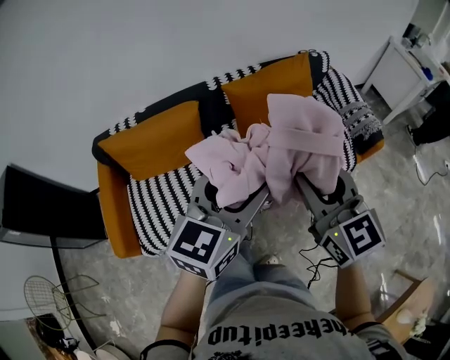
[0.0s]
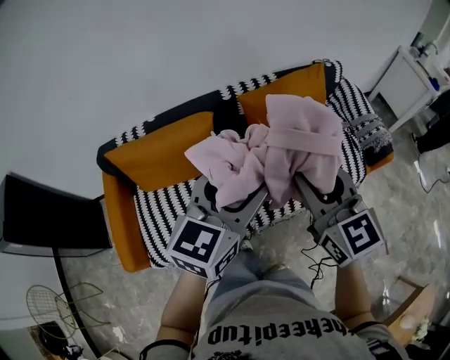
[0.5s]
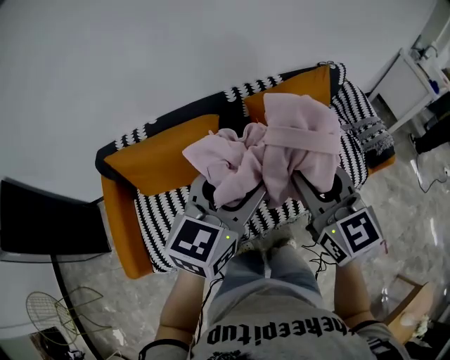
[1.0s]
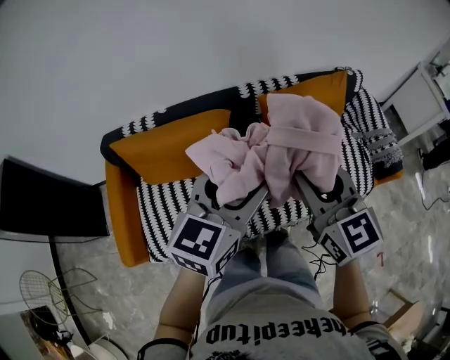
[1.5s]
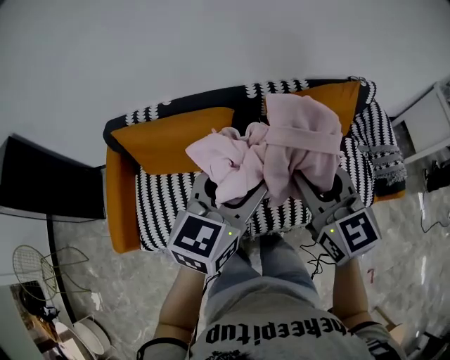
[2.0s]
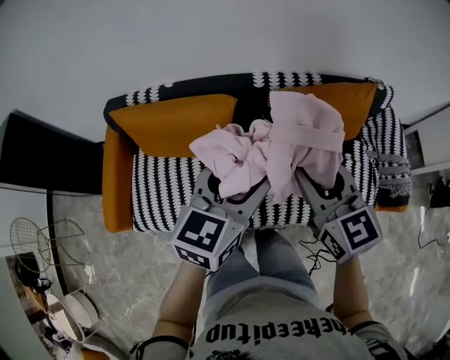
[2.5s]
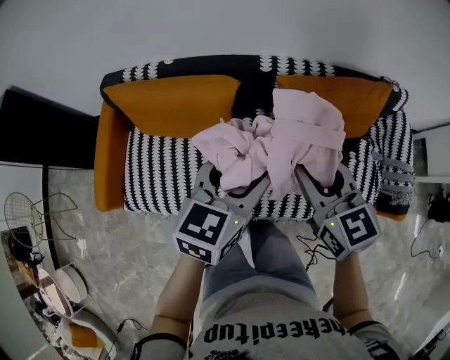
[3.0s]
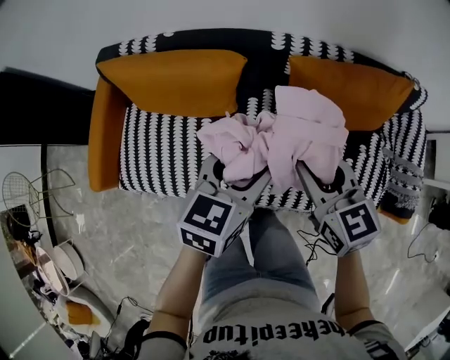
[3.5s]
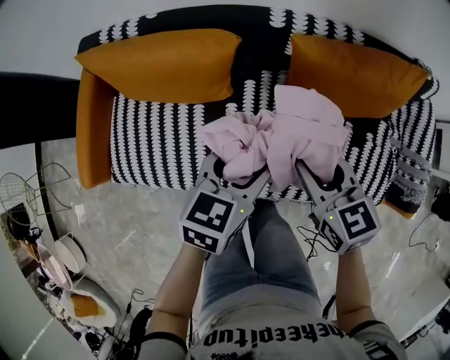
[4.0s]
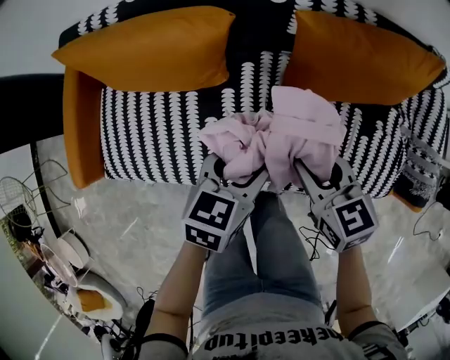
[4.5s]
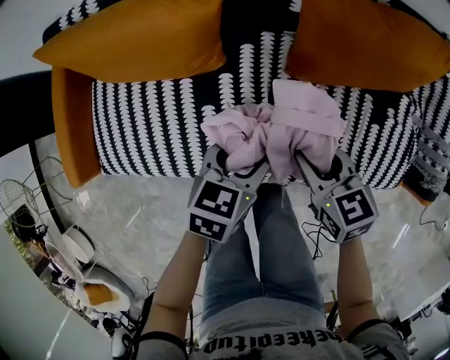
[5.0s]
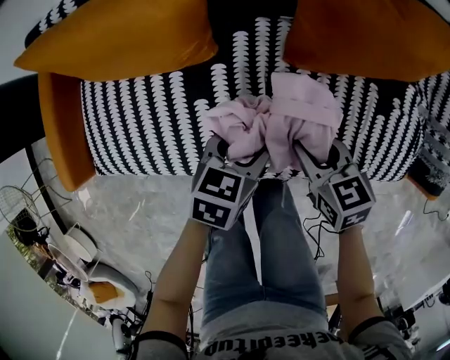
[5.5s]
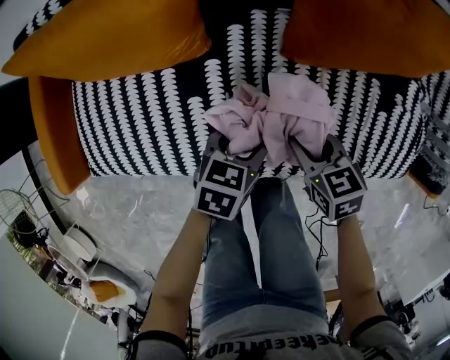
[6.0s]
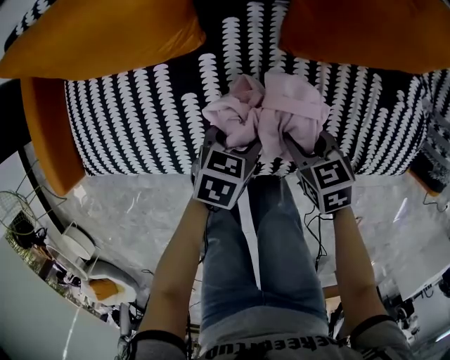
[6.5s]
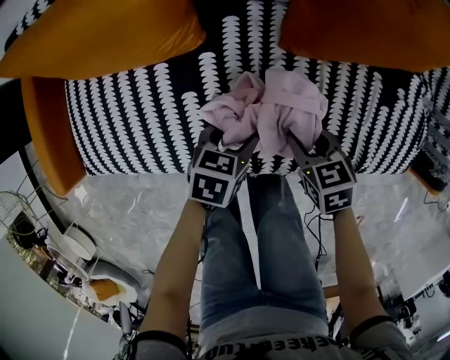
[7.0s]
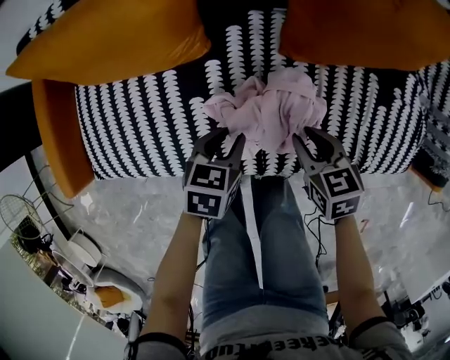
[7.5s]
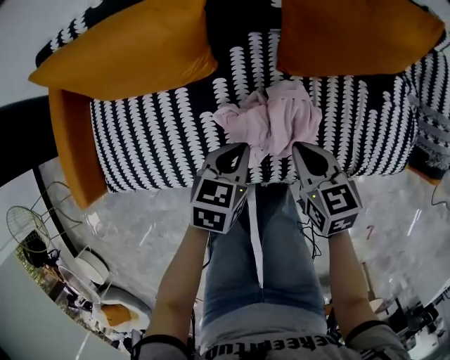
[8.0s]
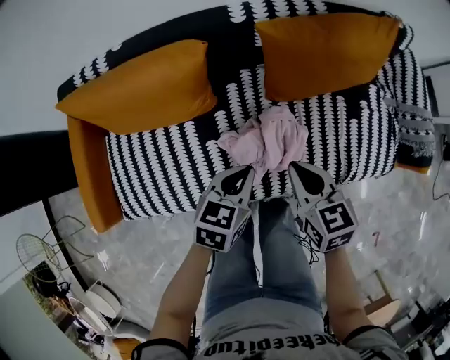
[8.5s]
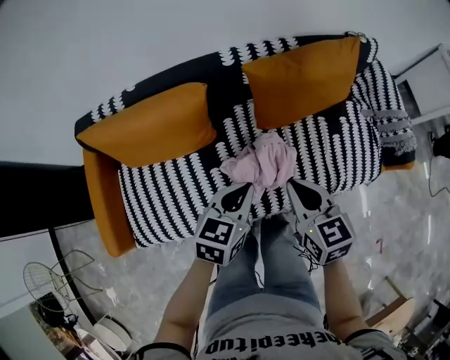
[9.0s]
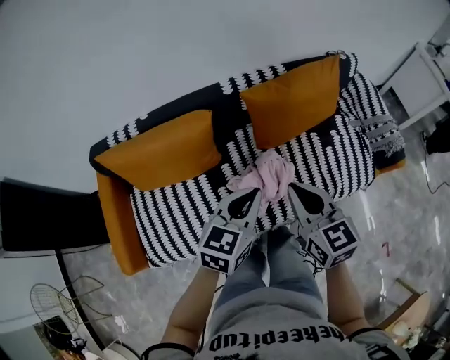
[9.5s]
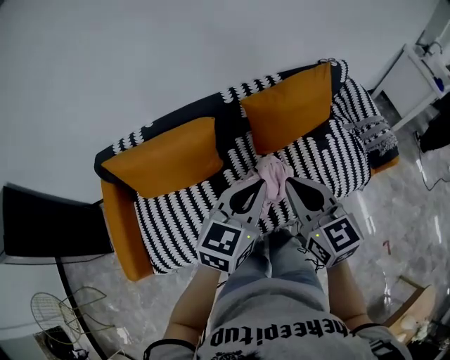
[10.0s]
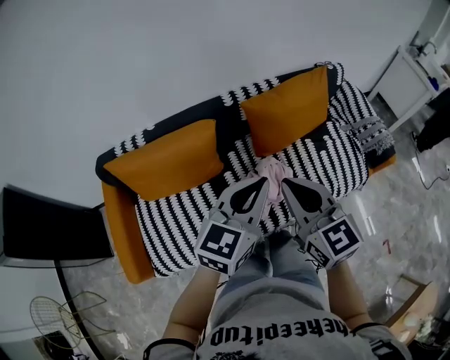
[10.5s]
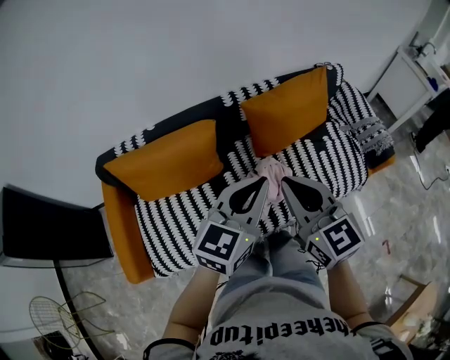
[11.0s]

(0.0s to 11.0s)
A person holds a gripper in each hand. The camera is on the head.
0.0s - 2.0s: The two grippers go some 20 cm forward and to the left.
2.0s - 3.5s: The right gripper shifts some 20 cm downward and forward, and rotates about 20 degrees; the left gripper moves downward, about 15 cm, and rotates about 20 degrees.
3.5s - 5.5s: Both grippers move downward, approximately 30 cm. The left gripper turns by approximately 20 degrees. Meanwhile the right gripper changes its angle by approximately 20 degrees.
5.5s - 7.5s: The left gripper moves some 5 cm, and closes up.
7.5s - 9.0s: The two grippers go roughly 25 cm upward. The right gripper turns by roughly 30 degrees, and closes up. Meanwhile the left gripper swivels approximately 30 degrees, and closes its fingers.
9.0s - 11.0s: The grippers both shift upward by roughly 20 cm. The left gripper swivels approximately 30 degrees. The right gripper swivels approximately 20 degrees.

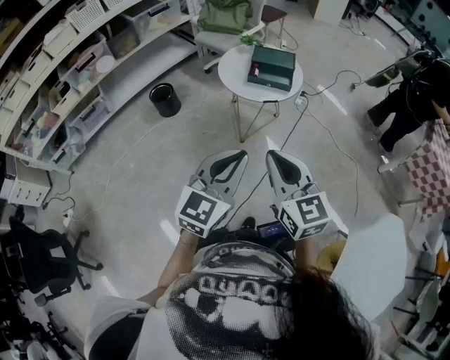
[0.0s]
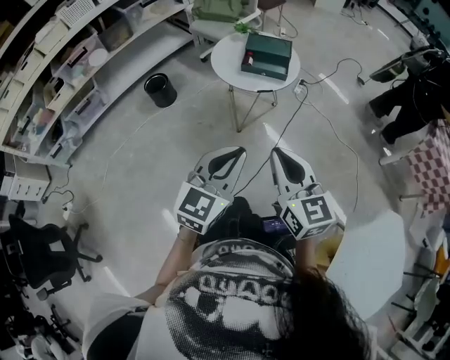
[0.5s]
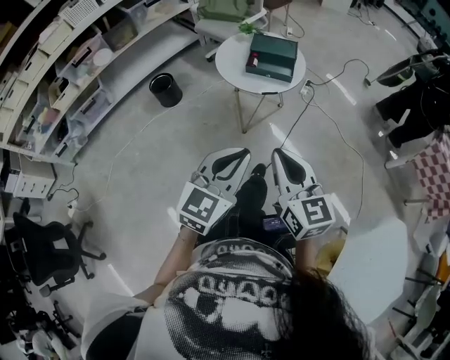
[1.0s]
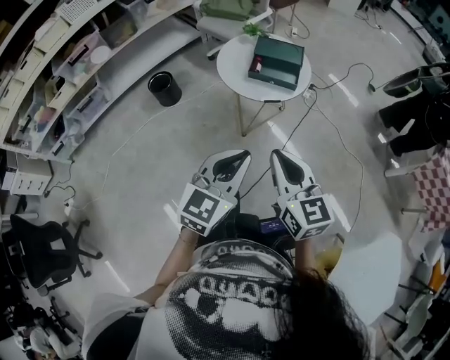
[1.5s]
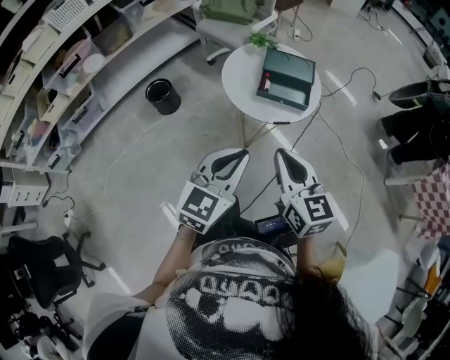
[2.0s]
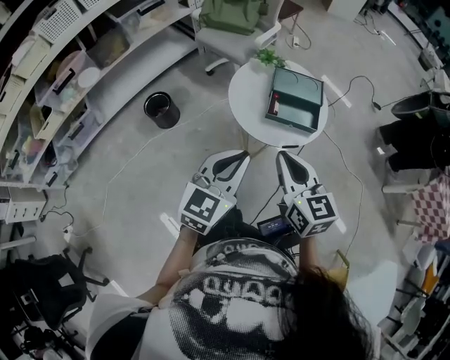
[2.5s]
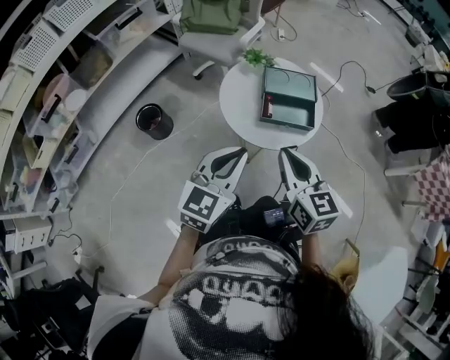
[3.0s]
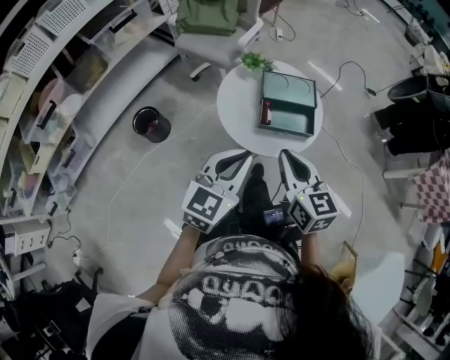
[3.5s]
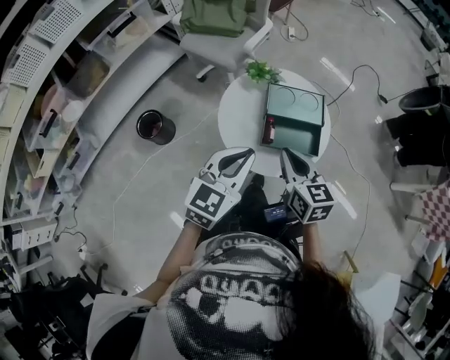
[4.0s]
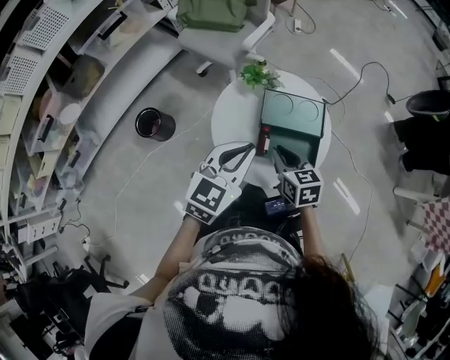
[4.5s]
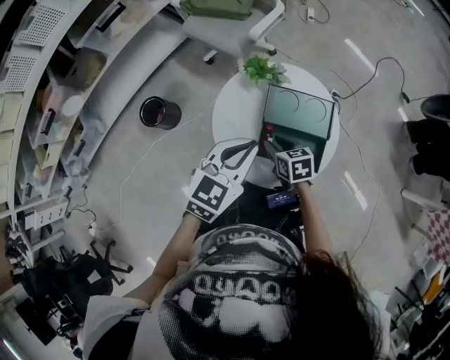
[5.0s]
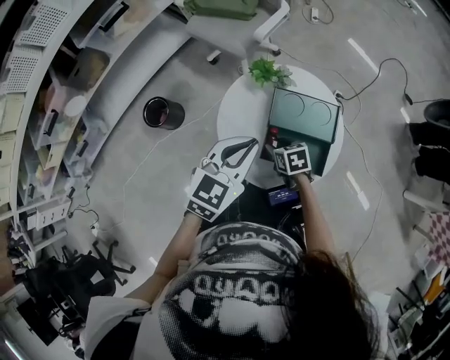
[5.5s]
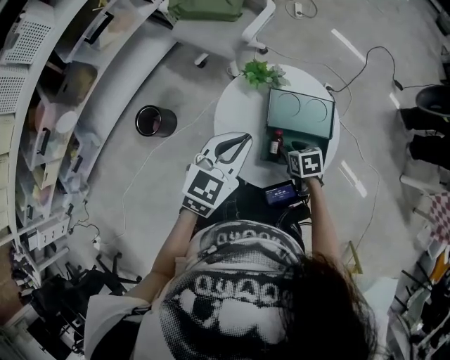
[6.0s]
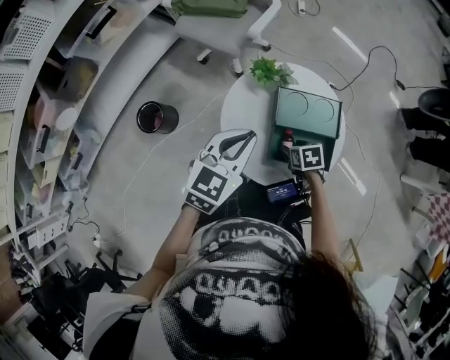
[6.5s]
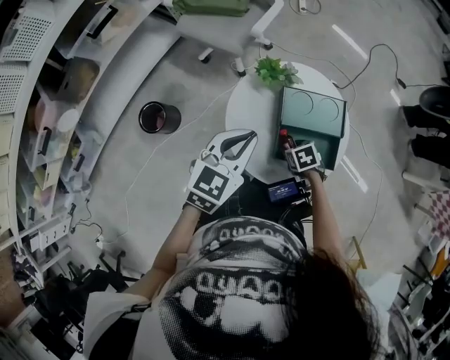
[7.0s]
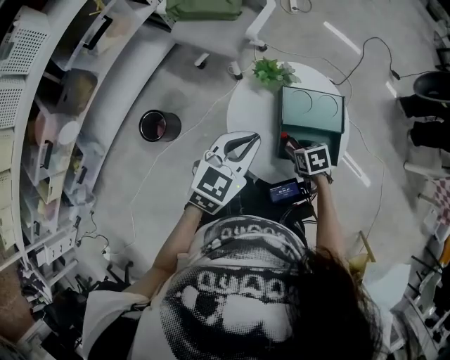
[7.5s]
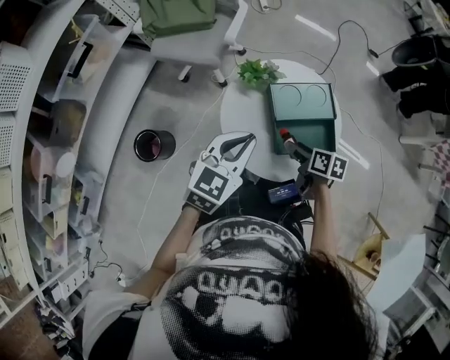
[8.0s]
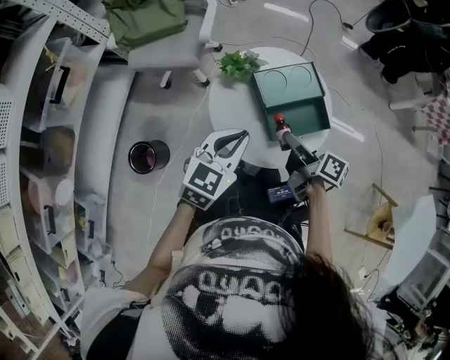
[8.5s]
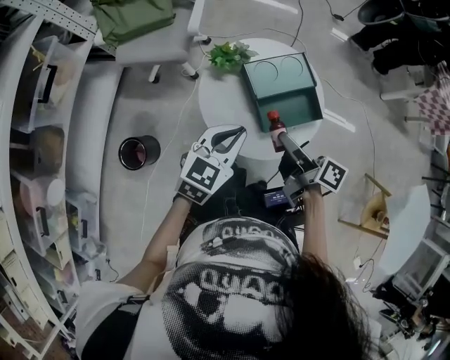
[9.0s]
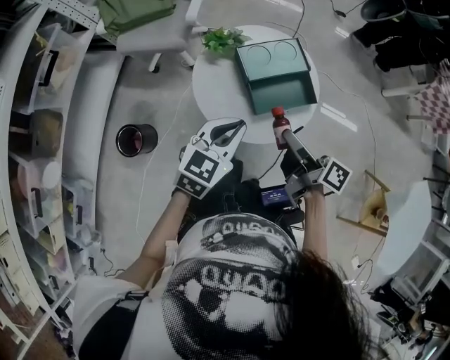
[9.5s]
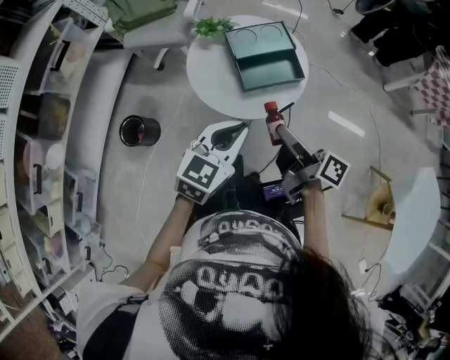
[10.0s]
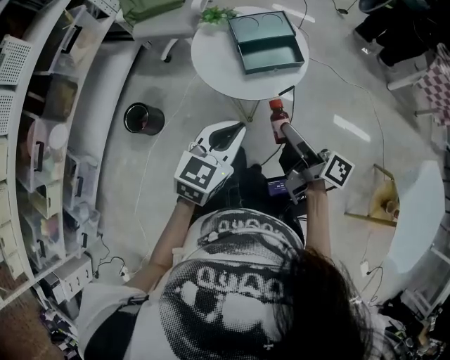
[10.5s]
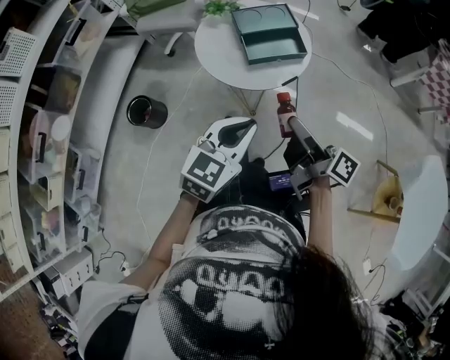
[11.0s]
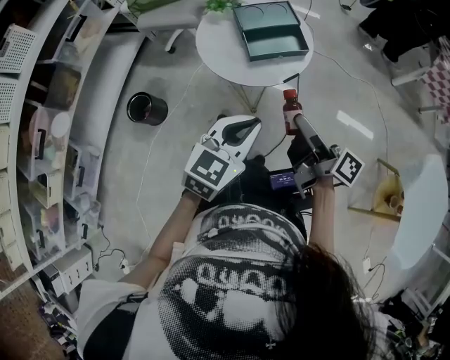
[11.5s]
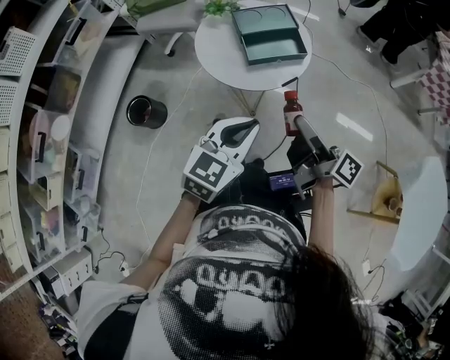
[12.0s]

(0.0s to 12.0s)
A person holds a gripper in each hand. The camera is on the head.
0.0s - 2.0s: Both grippers travel together forward, approximately 20 cm.
2.0s - 4.0s: Both grippers travel together forward, roughly 25 cm.
4.0s - 6.0s: The left gripper travels forward by approximately 15 cm, while the right gripper is displaced downward and forward by about 25 cm, tilts its fingers about 30 degrees downward, and opens.
6.0s - 8.0s: The right gripper heads upward, covering some 5 cm, and swivels roughly 40 degrees.
8.0s - 10.0s: The left gripper travels backward and to the right by some 20 cm; the right gripper moves backward and upward, about 25 cm, and tilts its fingers about 40 degrees upward.
10.0s - 12.0s: Both grippers move backward, approximately 10 cm.

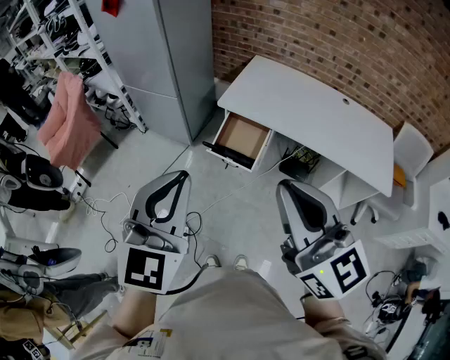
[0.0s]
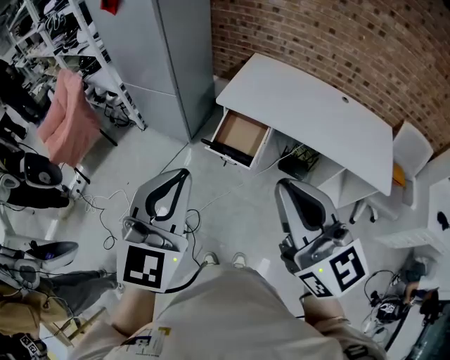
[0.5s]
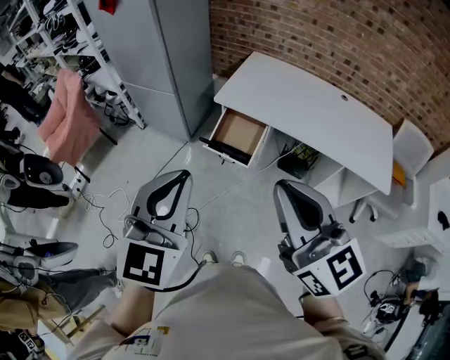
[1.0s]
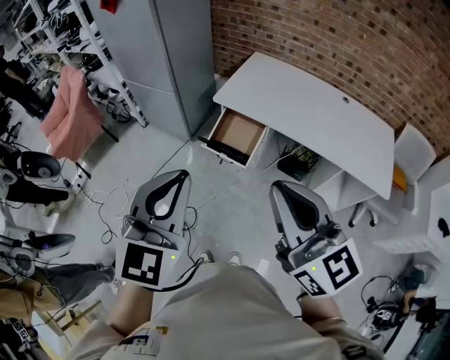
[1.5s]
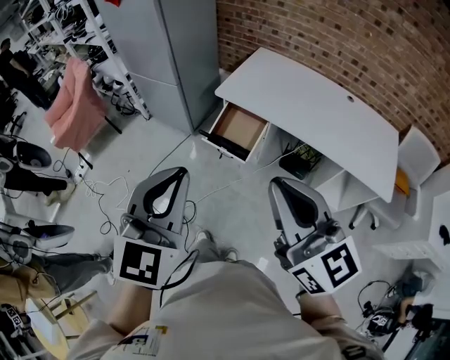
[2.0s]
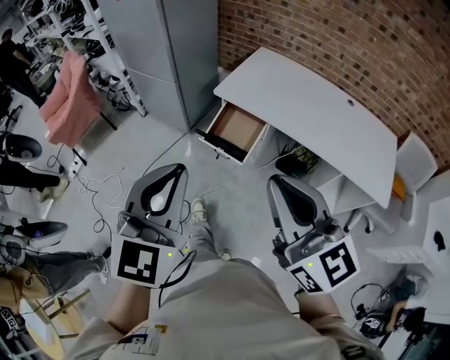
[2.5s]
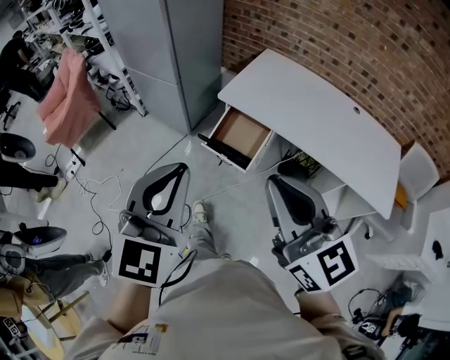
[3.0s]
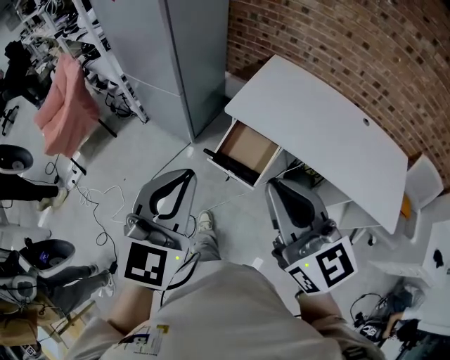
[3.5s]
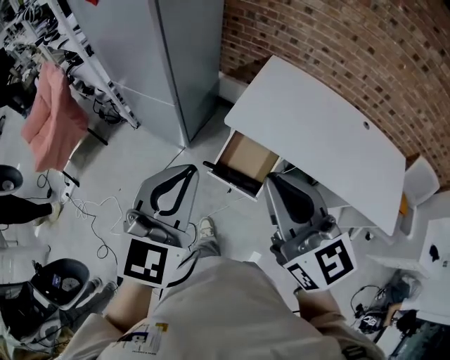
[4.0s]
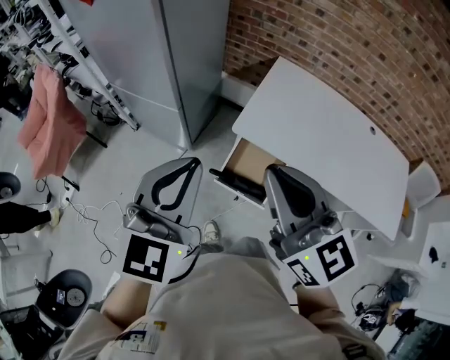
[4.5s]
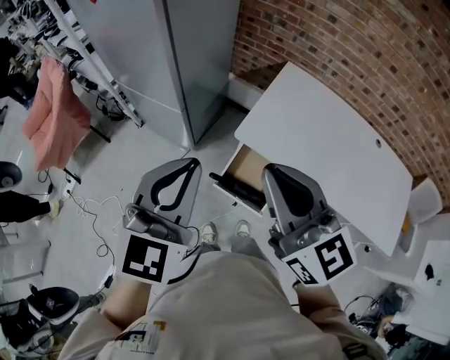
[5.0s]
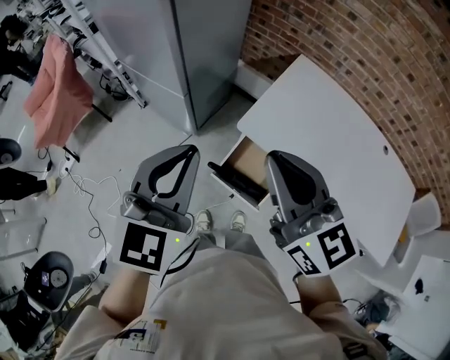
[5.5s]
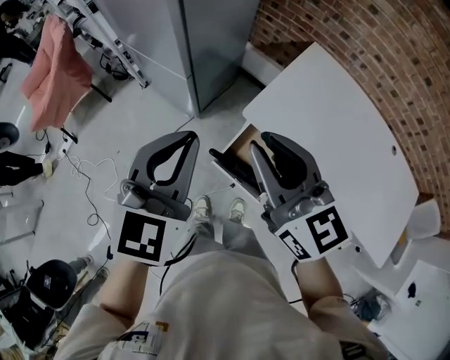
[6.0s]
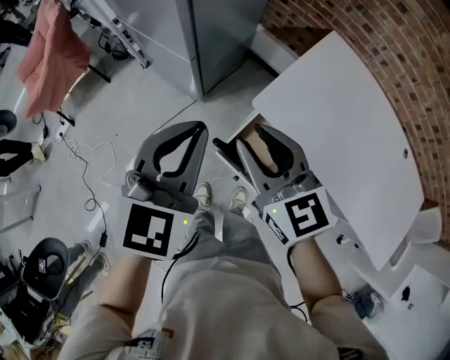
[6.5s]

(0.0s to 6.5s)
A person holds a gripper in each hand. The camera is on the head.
0.0s - 2.0s: Both grippers travel together to the right, about 10 cm.
2.0s - 4.5s: The pair of grippers is taken forward, roughly 40 cm.
4.5s - 6.5s: The two grippers go approximately 20 cm downward and forward. The right gripper rotates some 20 degrees, and opens up.
